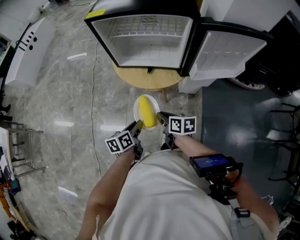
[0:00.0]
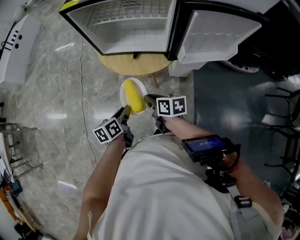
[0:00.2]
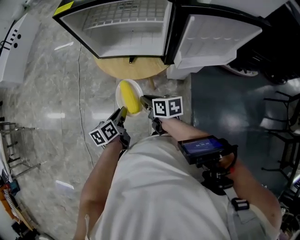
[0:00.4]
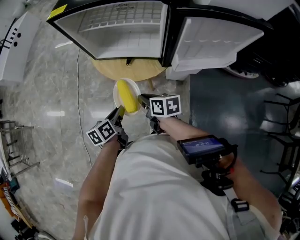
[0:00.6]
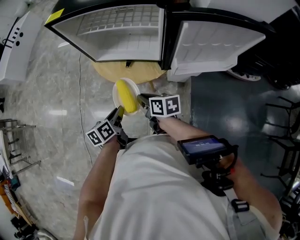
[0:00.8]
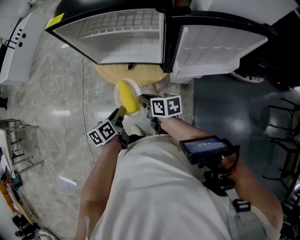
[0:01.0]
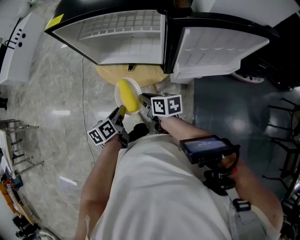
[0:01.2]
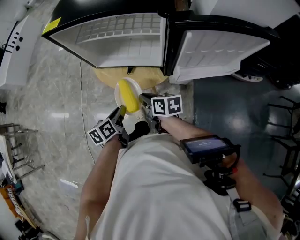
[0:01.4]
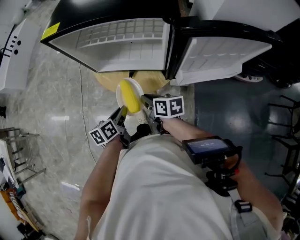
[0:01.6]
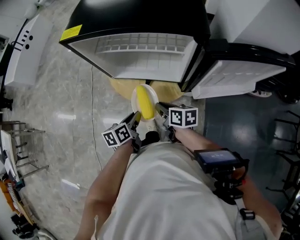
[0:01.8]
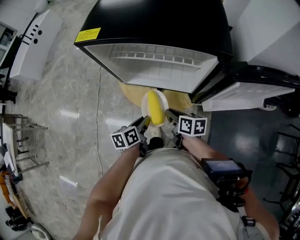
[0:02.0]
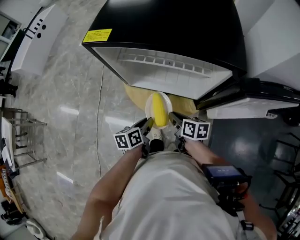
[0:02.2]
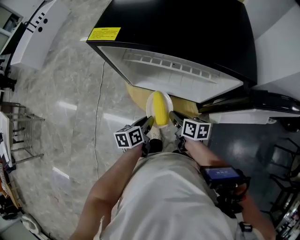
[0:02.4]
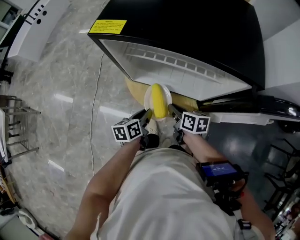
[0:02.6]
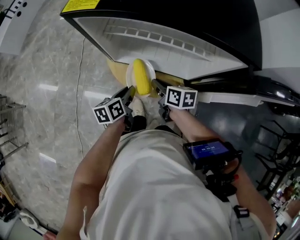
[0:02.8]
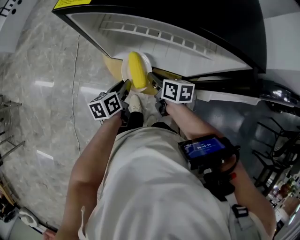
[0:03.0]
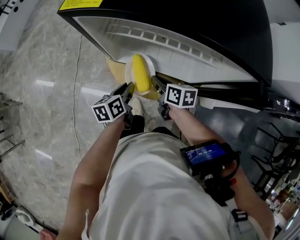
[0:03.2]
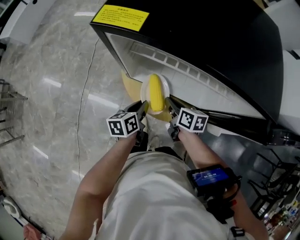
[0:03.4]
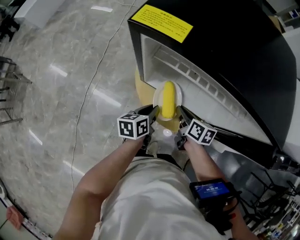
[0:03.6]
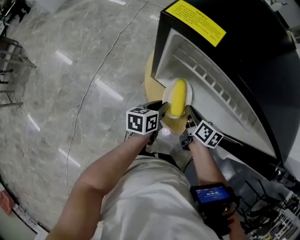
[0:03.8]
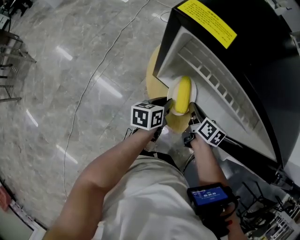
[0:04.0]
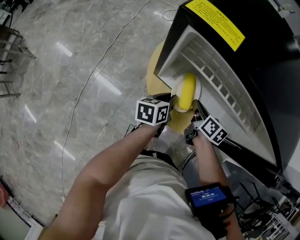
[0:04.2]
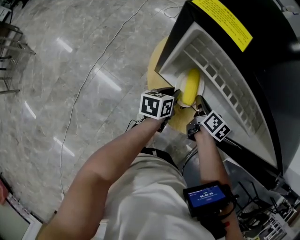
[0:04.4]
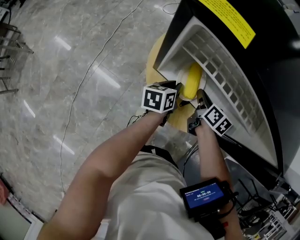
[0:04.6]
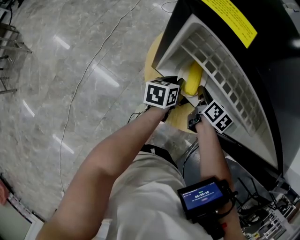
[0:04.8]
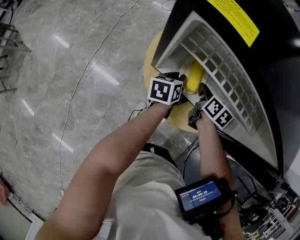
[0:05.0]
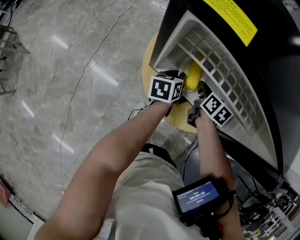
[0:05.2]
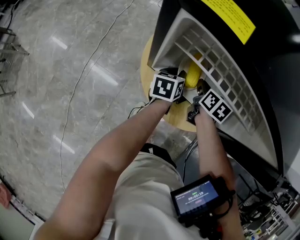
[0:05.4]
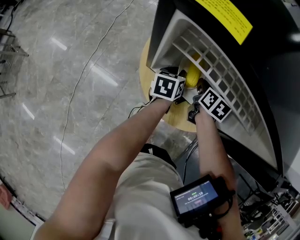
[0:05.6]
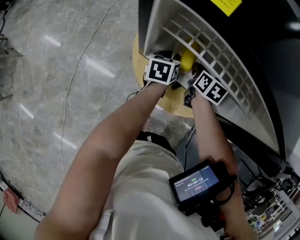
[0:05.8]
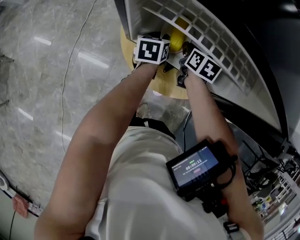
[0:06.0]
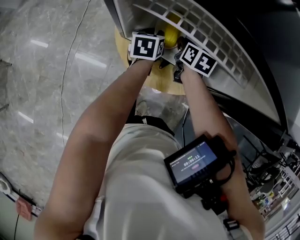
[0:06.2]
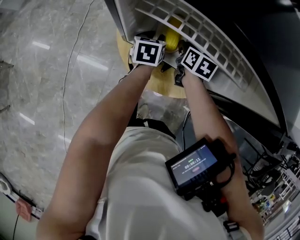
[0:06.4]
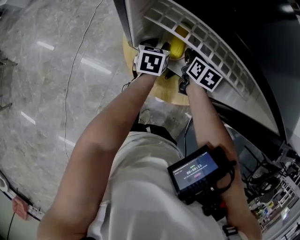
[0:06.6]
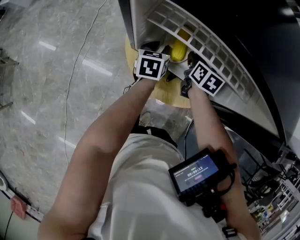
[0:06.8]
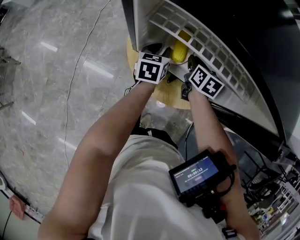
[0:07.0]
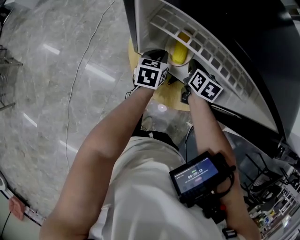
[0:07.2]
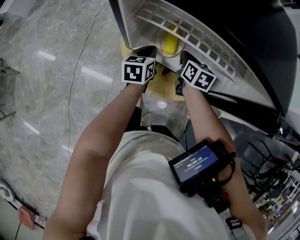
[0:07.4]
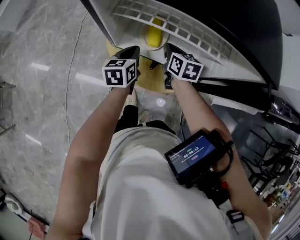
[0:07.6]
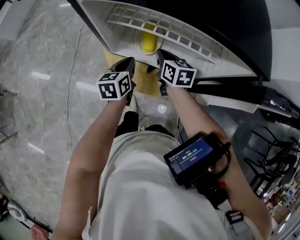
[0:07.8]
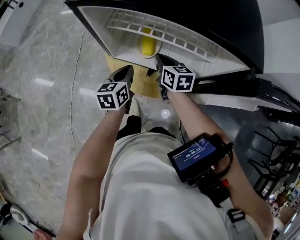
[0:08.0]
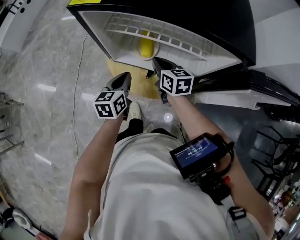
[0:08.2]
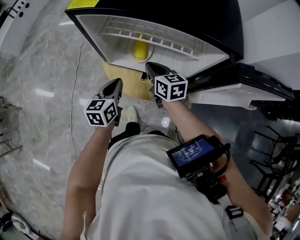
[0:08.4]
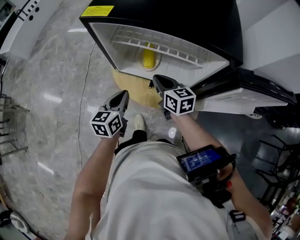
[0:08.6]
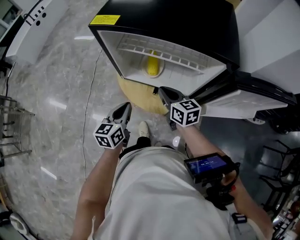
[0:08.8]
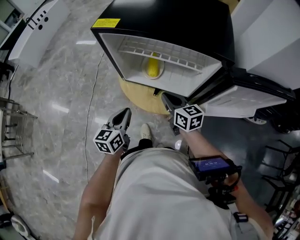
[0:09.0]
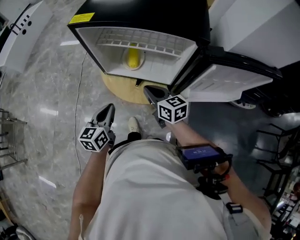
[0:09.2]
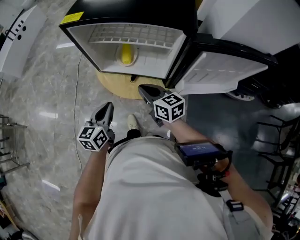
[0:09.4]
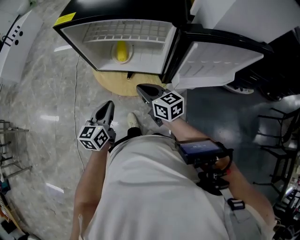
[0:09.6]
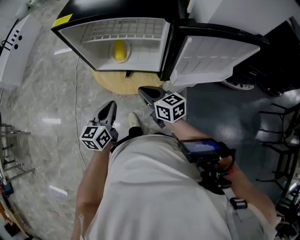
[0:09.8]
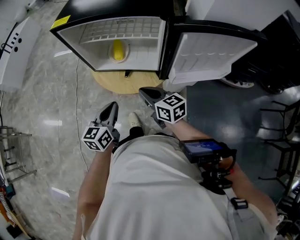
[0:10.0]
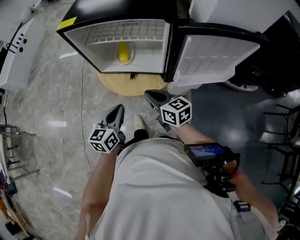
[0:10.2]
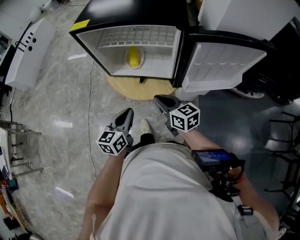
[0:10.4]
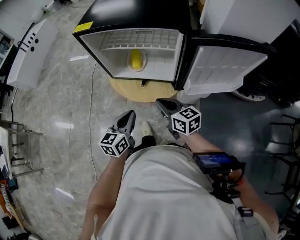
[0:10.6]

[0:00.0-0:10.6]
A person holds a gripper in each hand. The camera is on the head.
0:00.0 to 0:01.6: Both grippers travel together forward and to the right, approximately 15 cm.
0:01.6 to 0:03.0: Both grippers move forward, about 15 cm.
0:03.0 to 0:04.6: Both grippers move forward, approximately 10 cm.
0:04.6 to 0:06.0: The left gripper travels forward by about 5 cm.
0:06.0 to 0:07.6: The left gripper shifts some 10 cm backward and upward. The right gripper moves about 5 cm.
0:07.6 to 0:09.0: The two grippers go some 20 cm backward and upward. The right gripper rotates roughly 20 degrees.
0:09.0 to 0:10.6: The left gripper heads backward and to the right, covering roughly 10 cm. The right gripper travels backward by roughly 10 cm.

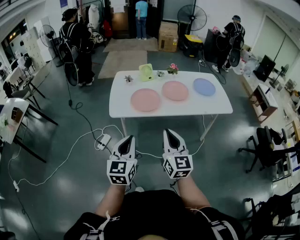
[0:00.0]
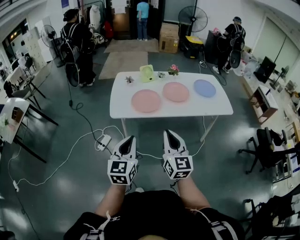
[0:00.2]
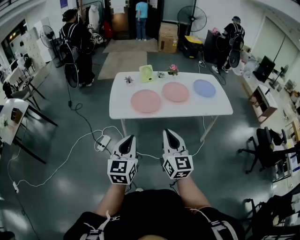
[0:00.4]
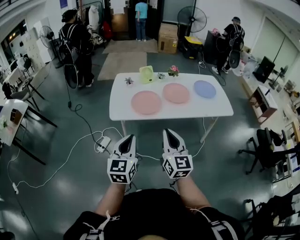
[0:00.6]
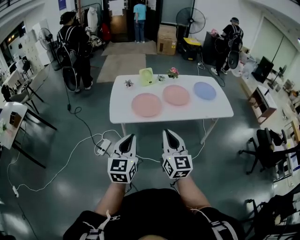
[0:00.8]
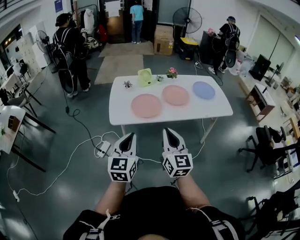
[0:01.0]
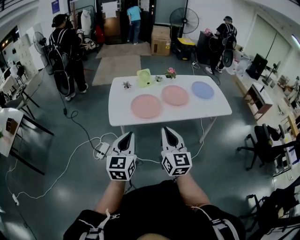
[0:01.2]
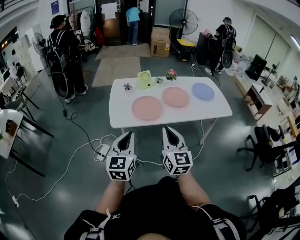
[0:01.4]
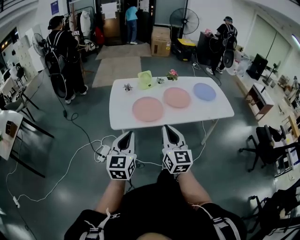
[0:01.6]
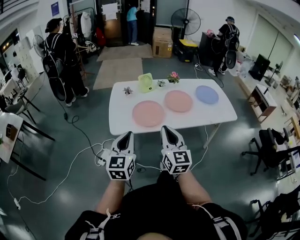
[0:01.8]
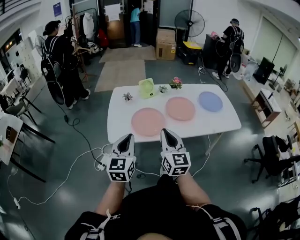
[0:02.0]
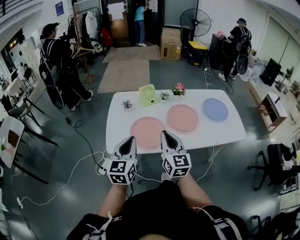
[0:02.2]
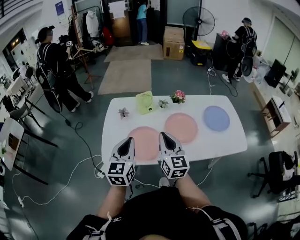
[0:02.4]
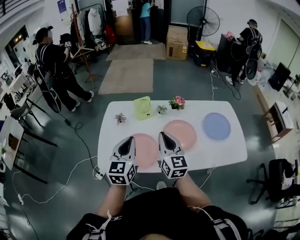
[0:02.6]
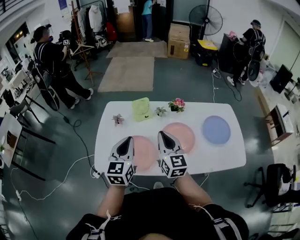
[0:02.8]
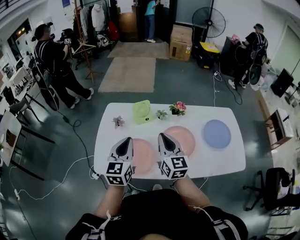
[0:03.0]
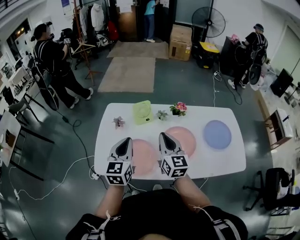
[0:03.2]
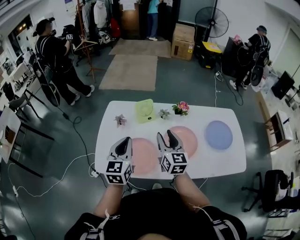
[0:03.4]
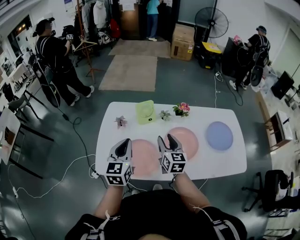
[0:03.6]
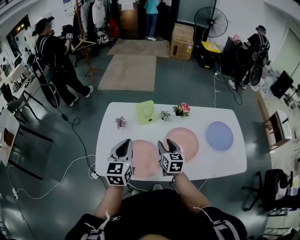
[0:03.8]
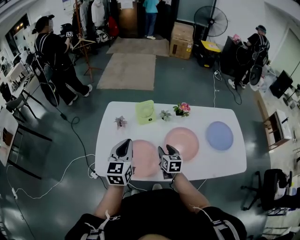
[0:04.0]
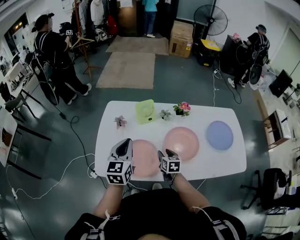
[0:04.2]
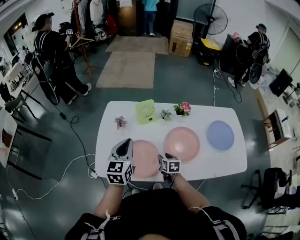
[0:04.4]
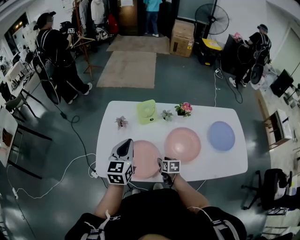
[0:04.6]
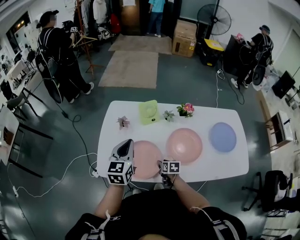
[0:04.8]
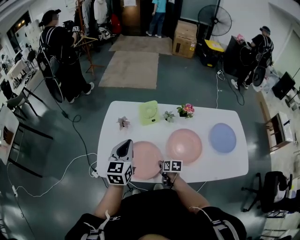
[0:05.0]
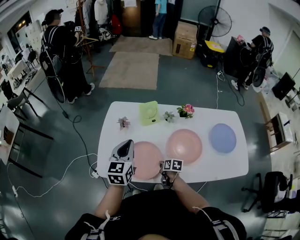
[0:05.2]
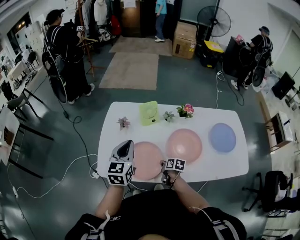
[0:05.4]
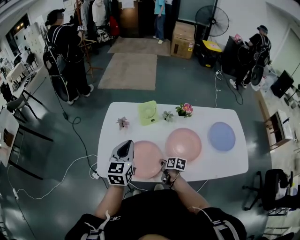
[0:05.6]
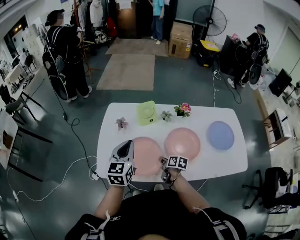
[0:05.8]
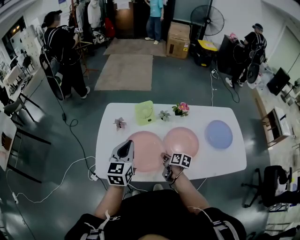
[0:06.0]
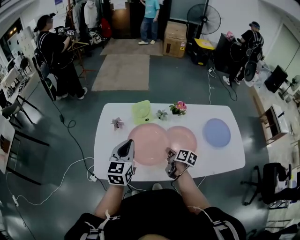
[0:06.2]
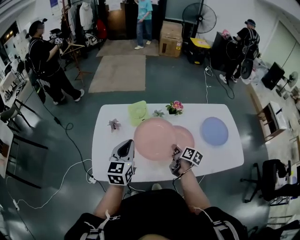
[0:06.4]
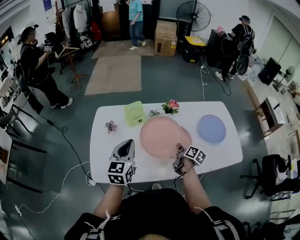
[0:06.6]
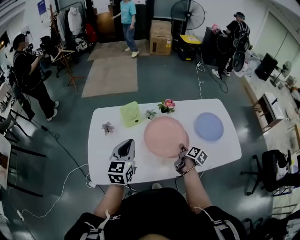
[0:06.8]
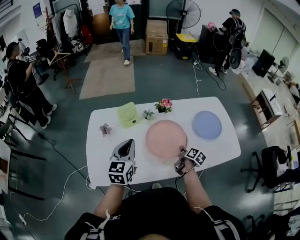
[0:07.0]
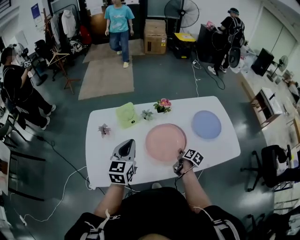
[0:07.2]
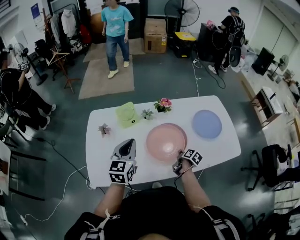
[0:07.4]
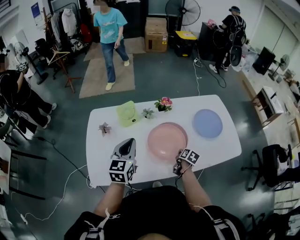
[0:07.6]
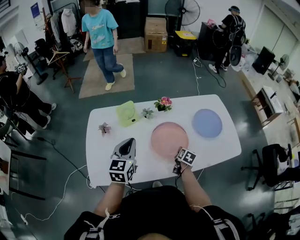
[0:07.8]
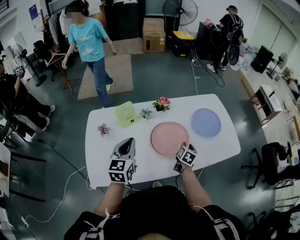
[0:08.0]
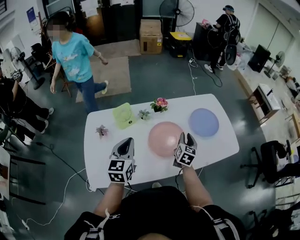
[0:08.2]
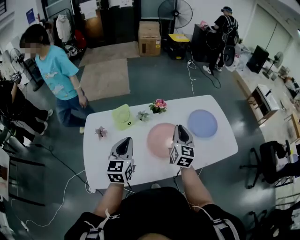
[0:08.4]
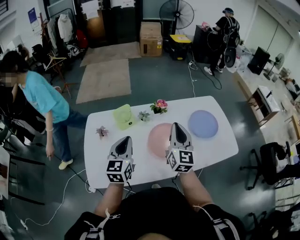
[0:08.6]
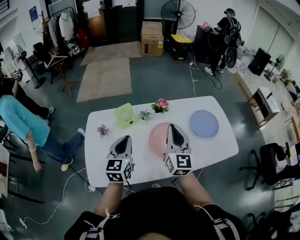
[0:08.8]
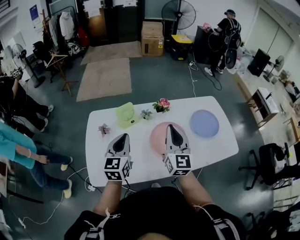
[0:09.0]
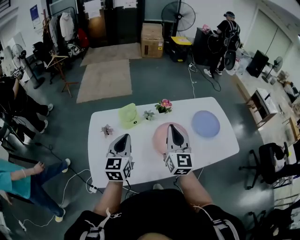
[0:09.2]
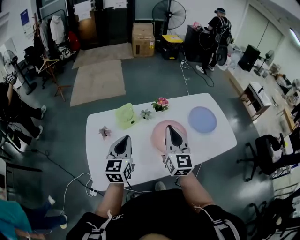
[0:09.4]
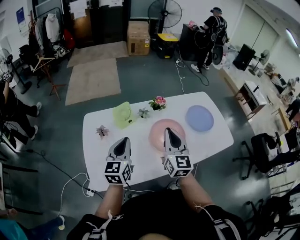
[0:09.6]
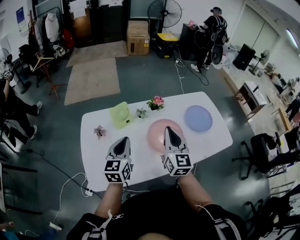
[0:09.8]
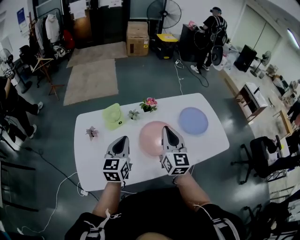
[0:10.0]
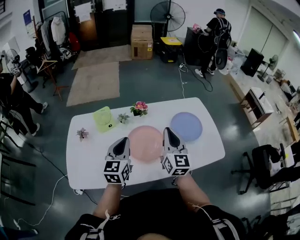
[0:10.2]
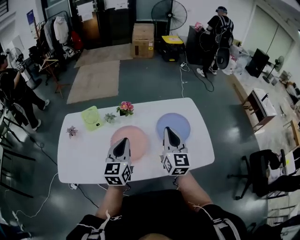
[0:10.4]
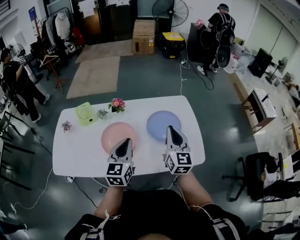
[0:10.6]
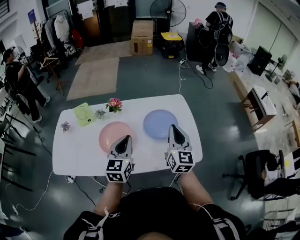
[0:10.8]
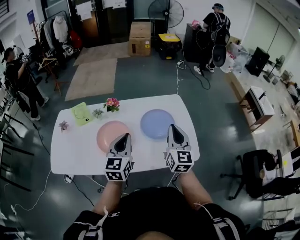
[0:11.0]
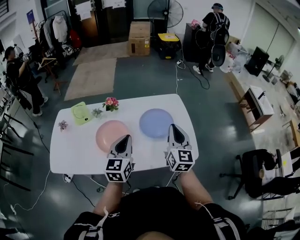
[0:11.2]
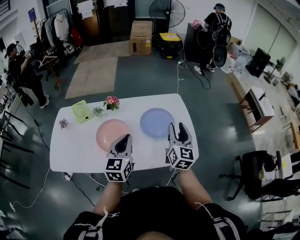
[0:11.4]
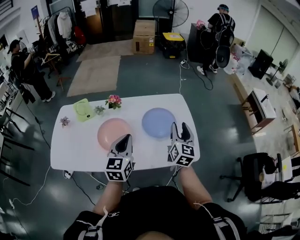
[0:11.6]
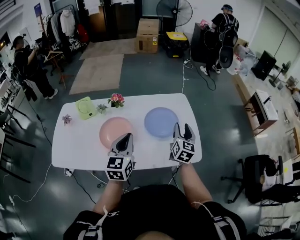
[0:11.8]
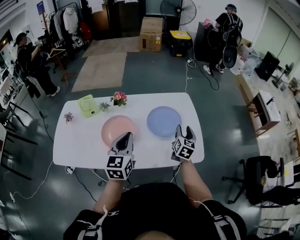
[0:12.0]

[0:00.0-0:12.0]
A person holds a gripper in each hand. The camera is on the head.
0:00.0 to 0:01.6: The grippers both shift forward and to the left by about 10 cm.
0:01.6 to 0:03.0: The two grippers travel together, forward, roughly 50 cm.
0:03.0 to 0:04.4: The right gripper goes about 30 cm downward, tilts its fingers approximately 40 degrees downward, and opens up; the left gripper travels forward by roughly 5 cm.
0:04.4 to 0:06.0: The right gripper swivels approximately 30 degrees, and closes up.
0:06.0 to 0:07.6: The right gripper changes place by about 20 cm, and changes its angle by about 30 degrees, while the left gripper moves about 10 cm.
0:07.6 to 0:09.0: The right gripper goes about 35 cm upward, tips its fingers upward by about 50 degrees, and opens, then closes once more; the left gripper shifts by approximately 5 cm.
0:09.0 to 0:10.4: Both grippers move to the right, about 30 cm.
0:10.4 to 0:12.0: The right gripper heads to the right and downward, covering roughly 25 cm, rotates approximately 20 degrees, and opens its fingers, while the left gripper is displaced to the right by about 15 cm.

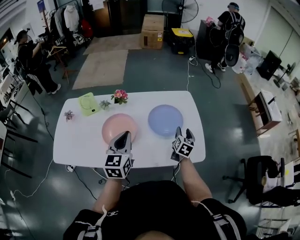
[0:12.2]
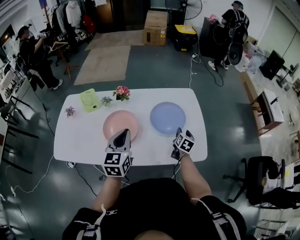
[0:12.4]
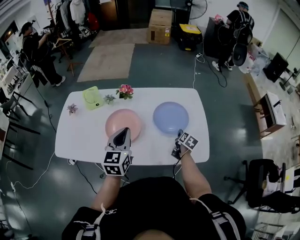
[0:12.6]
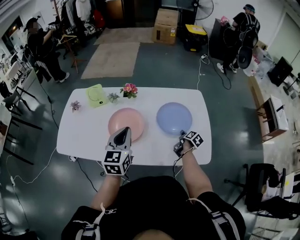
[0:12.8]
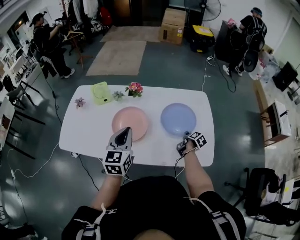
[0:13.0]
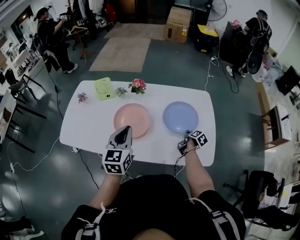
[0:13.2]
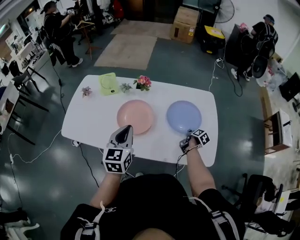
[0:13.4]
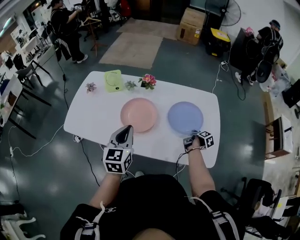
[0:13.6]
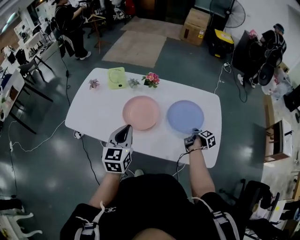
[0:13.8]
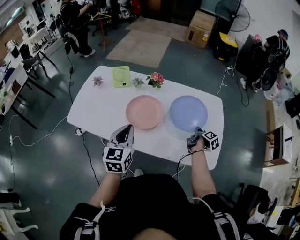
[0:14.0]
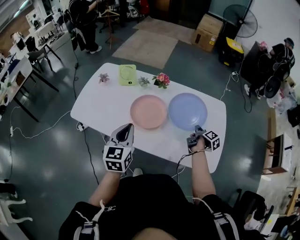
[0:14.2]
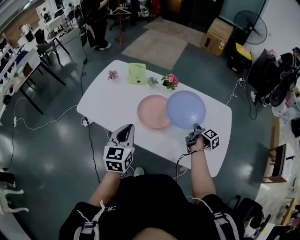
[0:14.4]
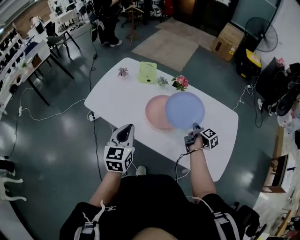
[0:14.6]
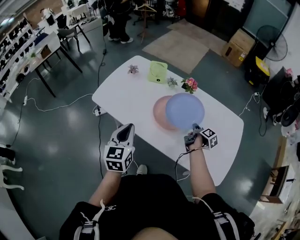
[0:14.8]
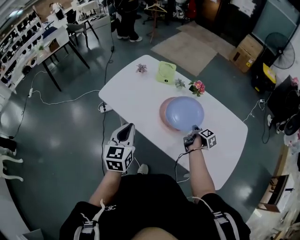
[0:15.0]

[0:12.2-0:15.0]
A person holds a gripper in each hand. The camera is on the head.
0:12.2 to 0:13.6: The right gripper goes about 15 cm downward, rolls clockwise, seen from behind, by roughly 50 degrees, and closes its fingers. Meanwhile the left gripper goes some 10 cm to the left.
0:13.6 to 0:15.0: The right gripper changes place by some 25 cm, and rotates some 30 degrees, while the left gripper changes place by about 20 cm, and turns by about 30 degrees.
